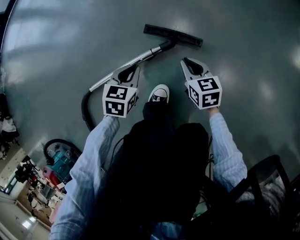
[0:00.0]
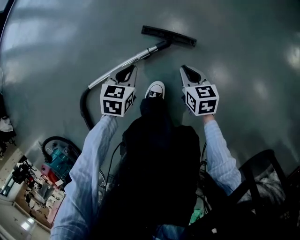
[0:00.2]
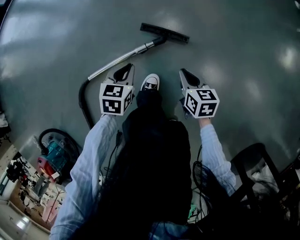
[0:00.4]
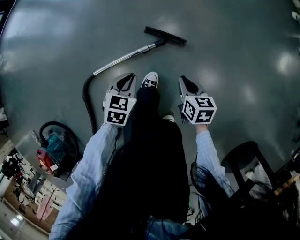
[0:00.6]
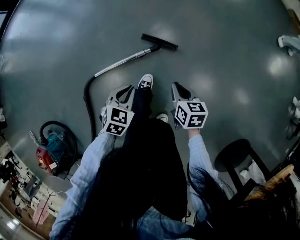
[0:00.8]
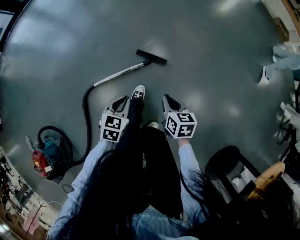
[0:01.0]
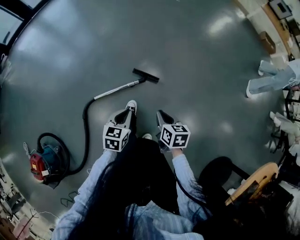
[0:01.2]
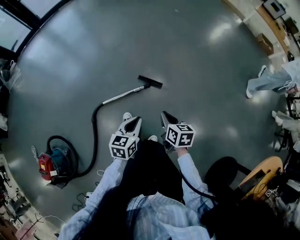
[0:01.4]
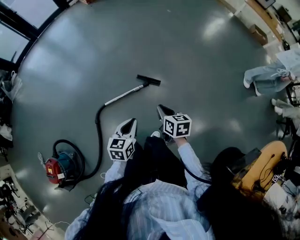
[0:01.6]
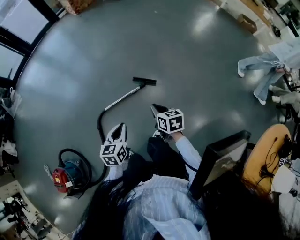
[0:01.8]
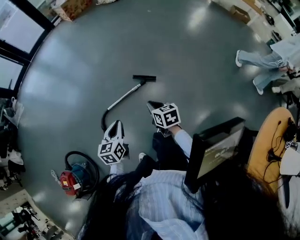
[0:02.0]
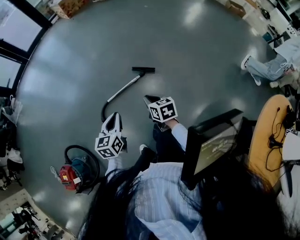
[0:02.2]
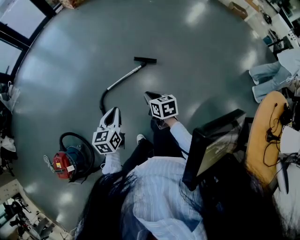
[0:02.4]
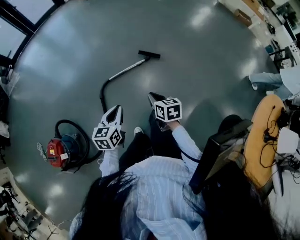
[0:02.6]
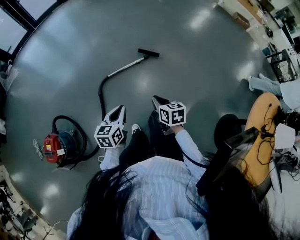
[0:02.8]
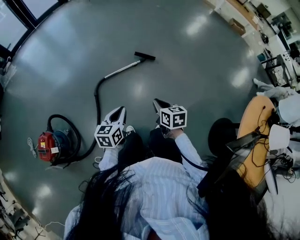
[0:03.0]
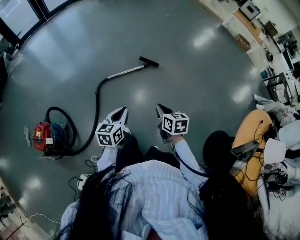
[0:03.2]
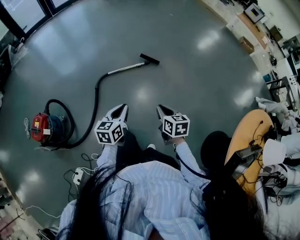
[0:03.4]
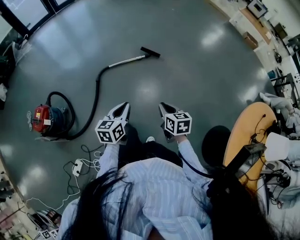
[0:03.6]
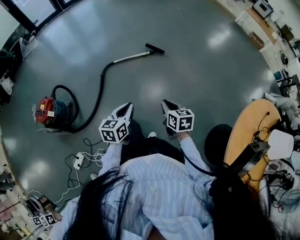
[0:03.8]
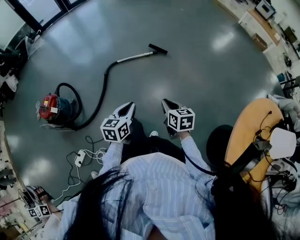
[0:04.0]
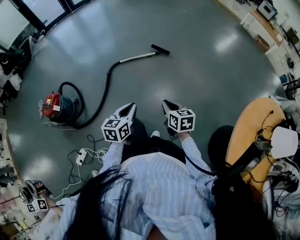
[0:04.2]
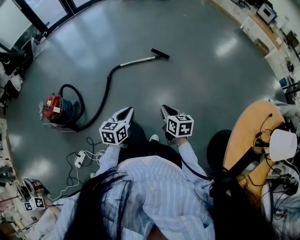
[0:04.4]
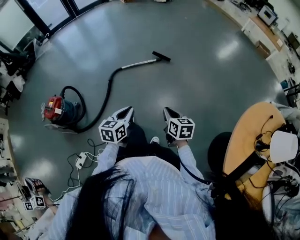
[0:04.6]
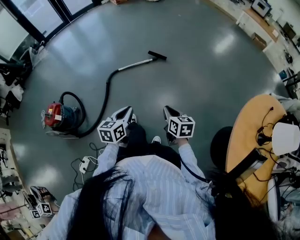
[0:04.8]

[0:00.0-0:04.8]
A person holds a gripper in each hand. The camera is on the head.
0:00.0 to 0:01.6: The right gripper goes about 60 cm upward; the left gripper goes some 70 cm upward and backward, and turns by about 30 degrees.
0:01.6 to 0:03.2: The left gripper travels backward and to the left by approximately 40 cm, while the right gripper moves backward, approximately 40 cm.
0:03.2 to 0:04.8: Both grippers travel together backward and to the right, about 25 cm.

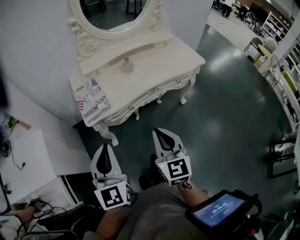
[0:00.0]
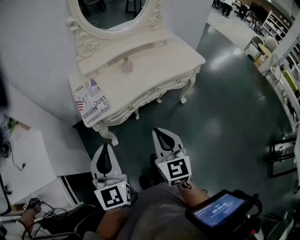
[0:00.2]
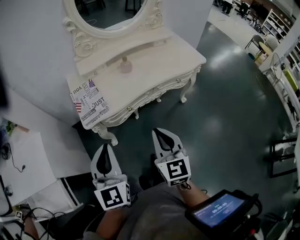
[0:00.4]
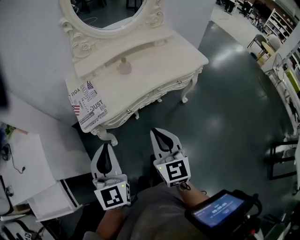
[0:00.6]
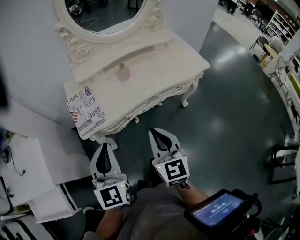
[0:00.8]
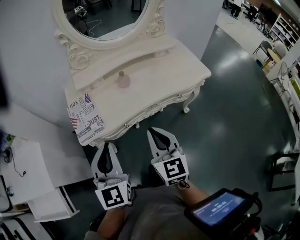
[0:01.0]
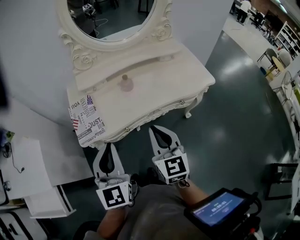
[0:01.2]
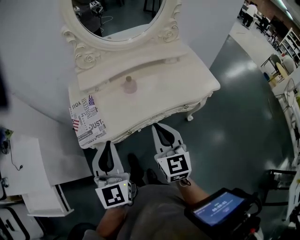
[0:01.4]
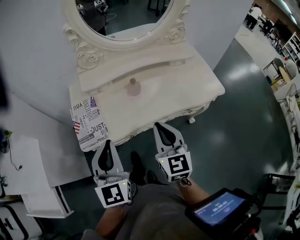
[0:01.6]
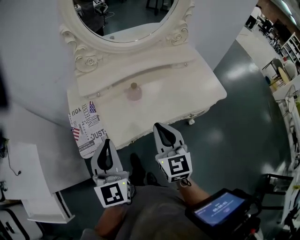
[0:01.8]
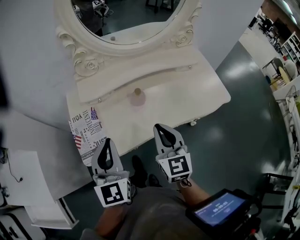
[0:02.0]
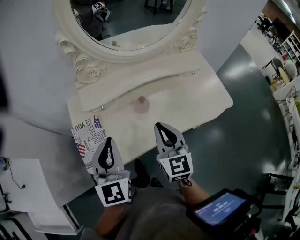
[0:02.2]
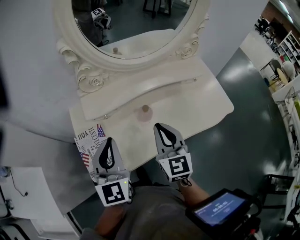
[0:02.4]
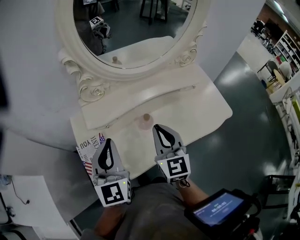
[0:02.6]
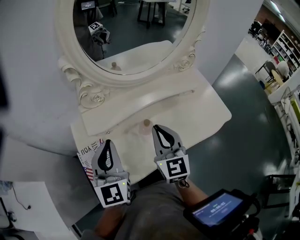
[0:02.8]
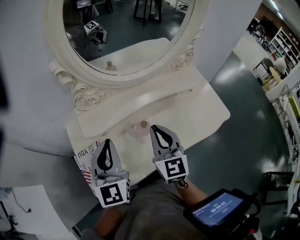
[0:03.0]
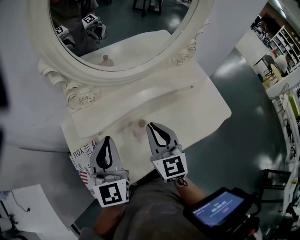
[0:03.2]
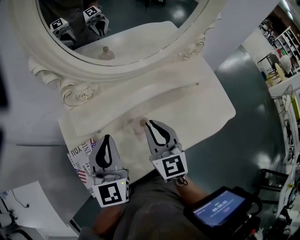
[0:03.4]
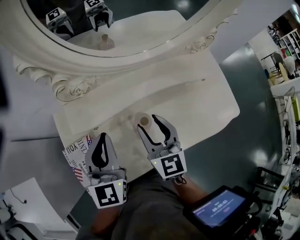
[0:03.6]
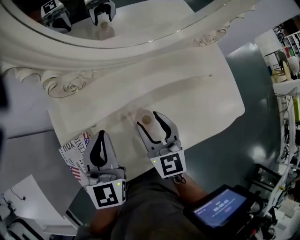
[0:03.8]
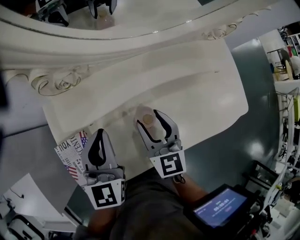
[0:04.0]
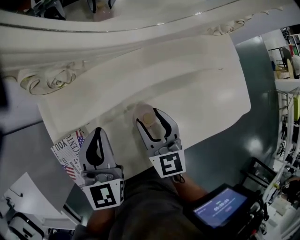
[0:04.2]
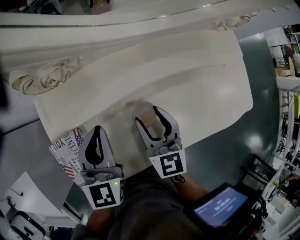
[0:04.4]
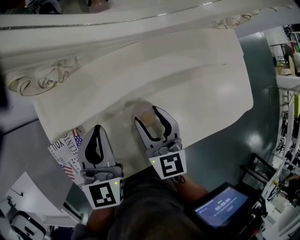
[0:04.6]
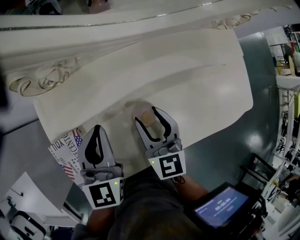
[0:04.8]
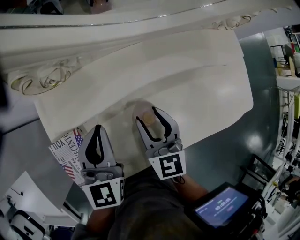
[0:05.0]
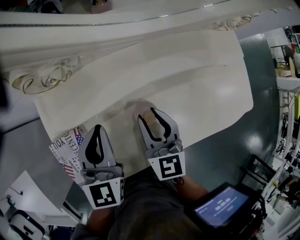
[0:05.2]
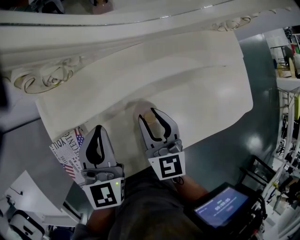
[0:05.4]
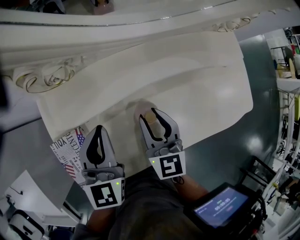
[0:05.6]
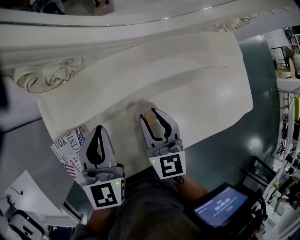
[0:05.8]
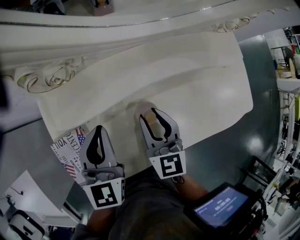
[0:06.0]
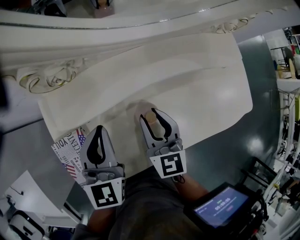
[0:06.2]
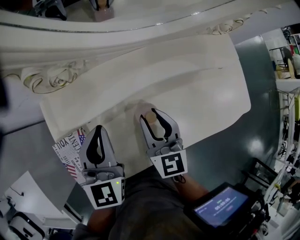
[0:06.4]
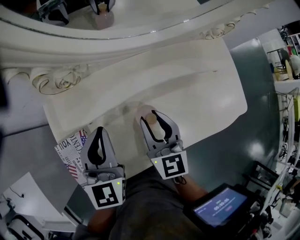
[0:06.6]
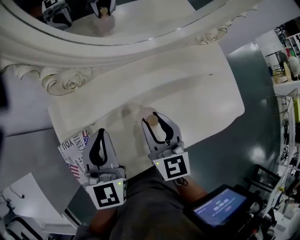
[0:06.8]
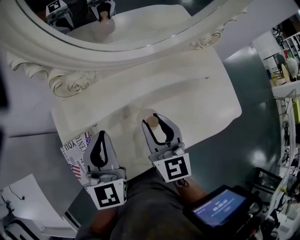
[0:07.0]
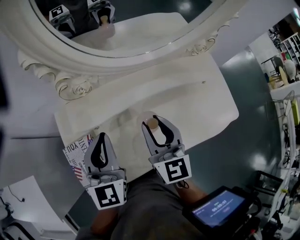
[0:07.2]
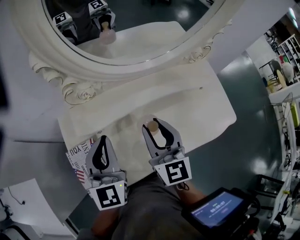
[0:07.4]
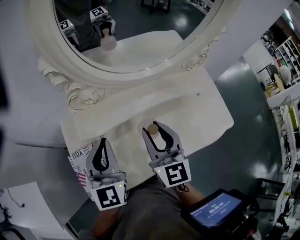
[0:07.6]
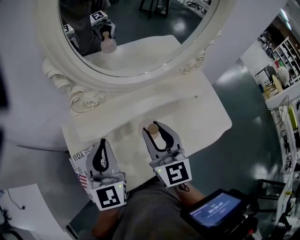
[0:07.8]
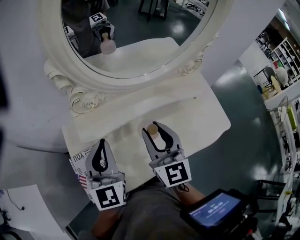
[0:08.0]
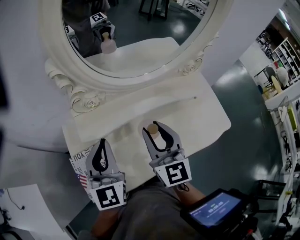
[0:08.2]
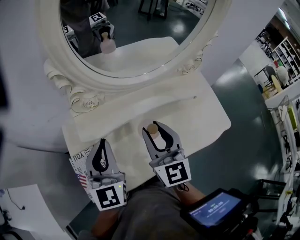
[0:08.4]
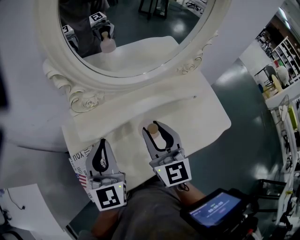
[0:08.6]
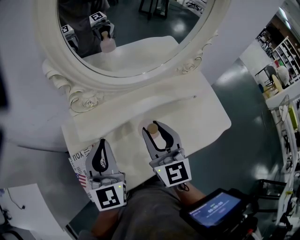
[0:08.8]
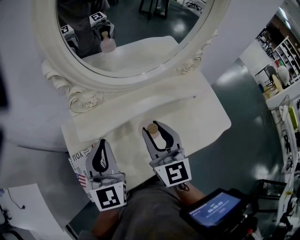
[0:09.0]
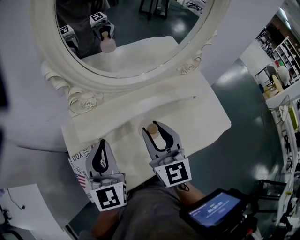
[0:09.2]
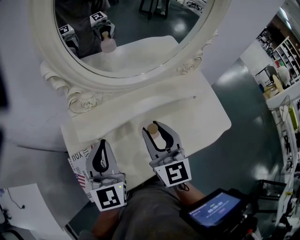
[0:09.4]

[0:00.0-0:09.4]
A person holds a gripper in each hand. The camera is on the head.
0:00.0 to 0:01.6: The right gripper shifts approximately 25 cm forward, while the left gripper shifts about 20 cm forward and to the right.
0:01.6 to 0:03.2: Both grippers move forward, some 25 cm.
0:03.2 to 0:04.8: The right gripper heads downward, covering approximately 15 cm, and opens its fingers, while the left gripper goes about 15 cm downward and forward.
0:04.8 to 0:06.2: The grippers move only a little.
0:06.2 to 0:07.8: The two grippers go roughly 15 cm upward.
0:07.8 to 0:09.4: Neither gripper changes place.

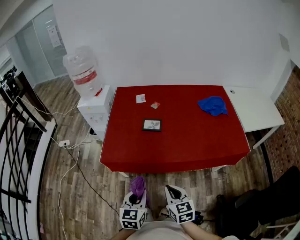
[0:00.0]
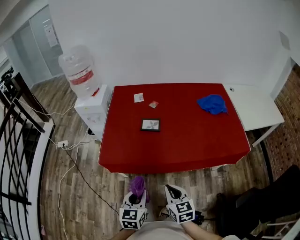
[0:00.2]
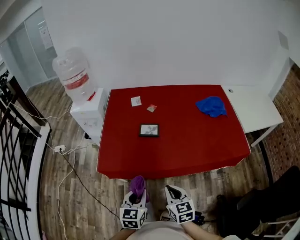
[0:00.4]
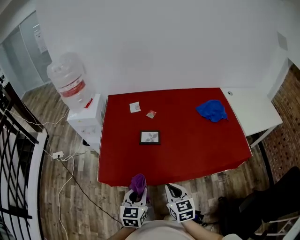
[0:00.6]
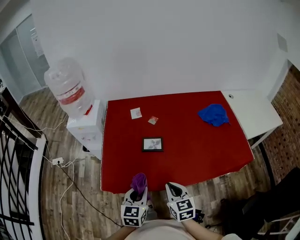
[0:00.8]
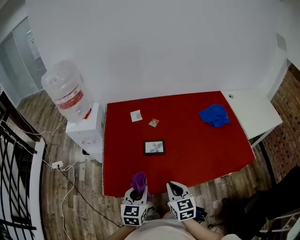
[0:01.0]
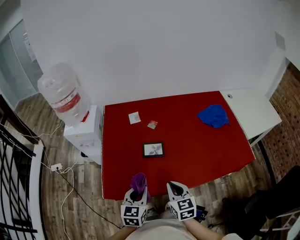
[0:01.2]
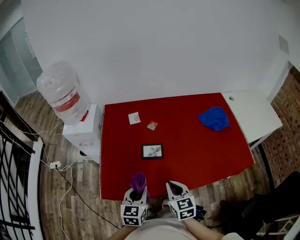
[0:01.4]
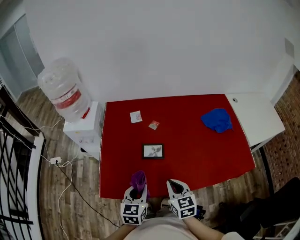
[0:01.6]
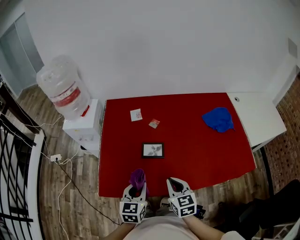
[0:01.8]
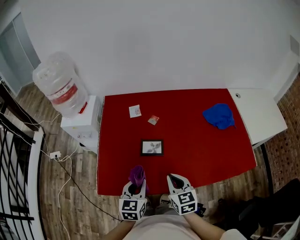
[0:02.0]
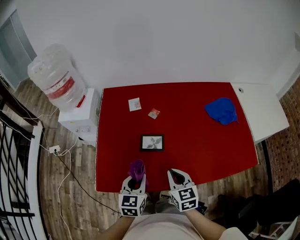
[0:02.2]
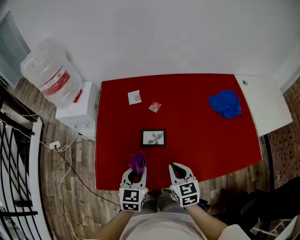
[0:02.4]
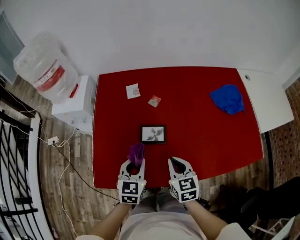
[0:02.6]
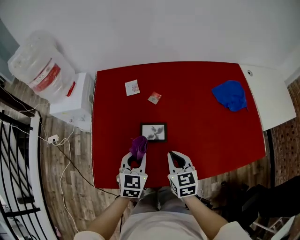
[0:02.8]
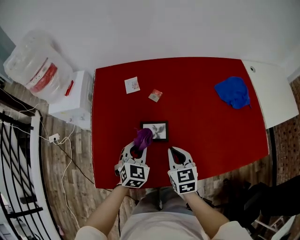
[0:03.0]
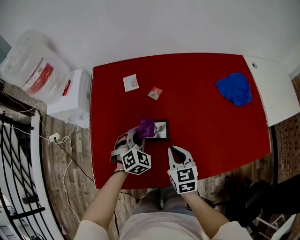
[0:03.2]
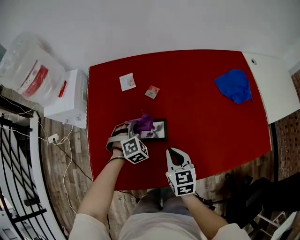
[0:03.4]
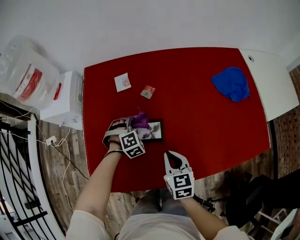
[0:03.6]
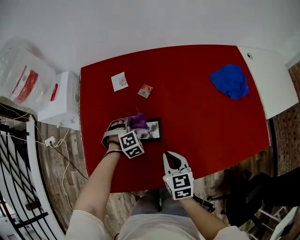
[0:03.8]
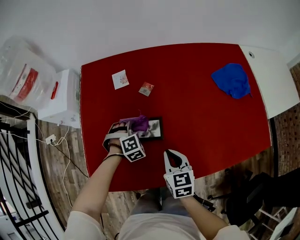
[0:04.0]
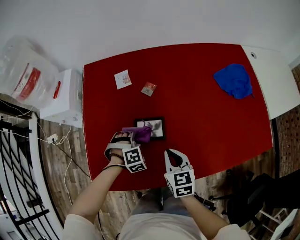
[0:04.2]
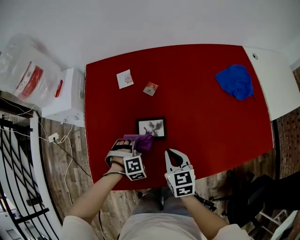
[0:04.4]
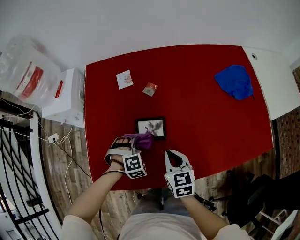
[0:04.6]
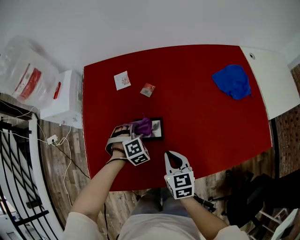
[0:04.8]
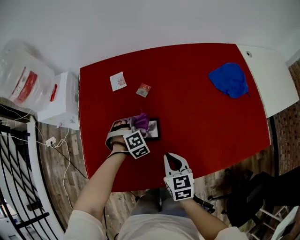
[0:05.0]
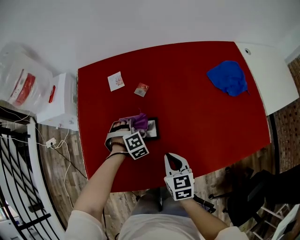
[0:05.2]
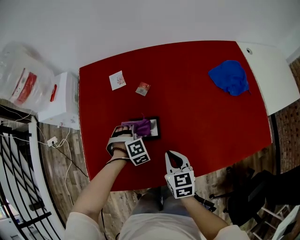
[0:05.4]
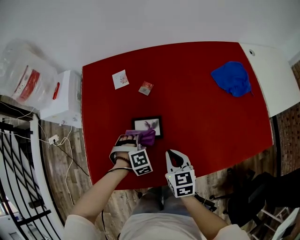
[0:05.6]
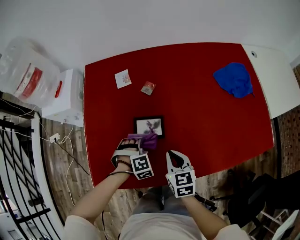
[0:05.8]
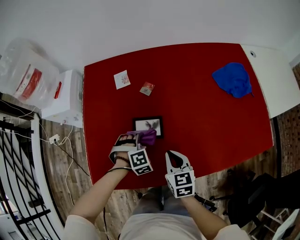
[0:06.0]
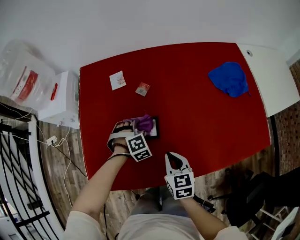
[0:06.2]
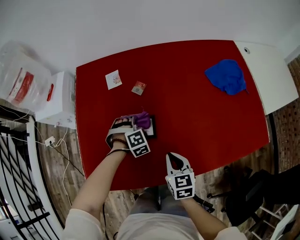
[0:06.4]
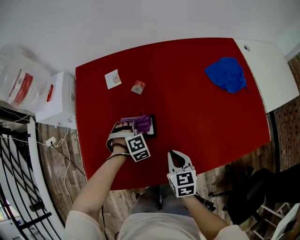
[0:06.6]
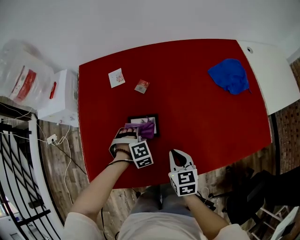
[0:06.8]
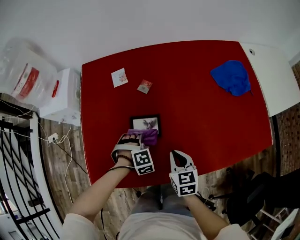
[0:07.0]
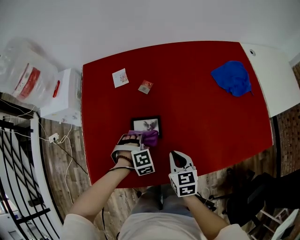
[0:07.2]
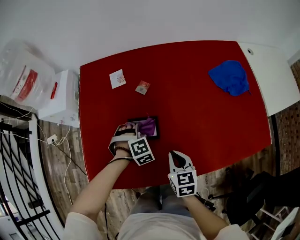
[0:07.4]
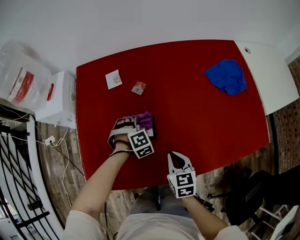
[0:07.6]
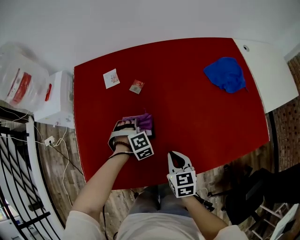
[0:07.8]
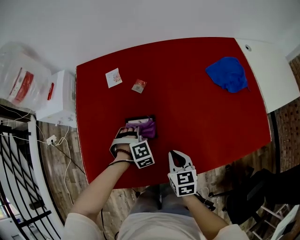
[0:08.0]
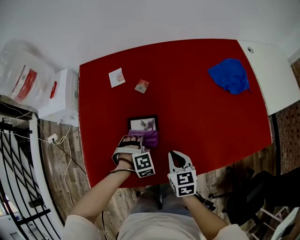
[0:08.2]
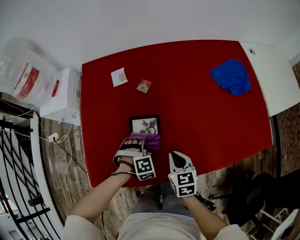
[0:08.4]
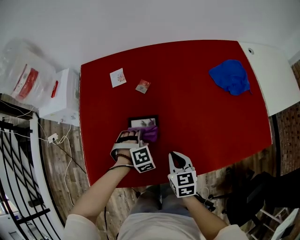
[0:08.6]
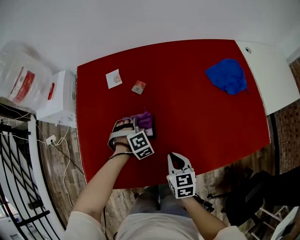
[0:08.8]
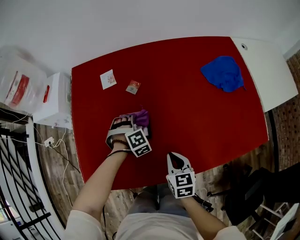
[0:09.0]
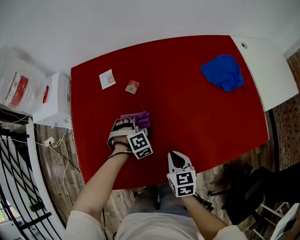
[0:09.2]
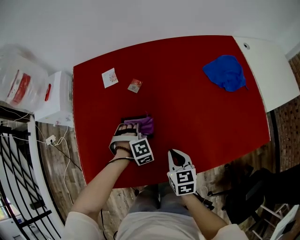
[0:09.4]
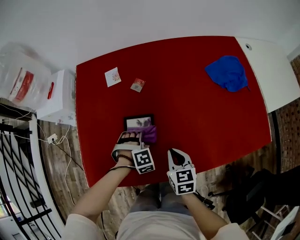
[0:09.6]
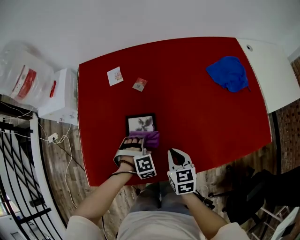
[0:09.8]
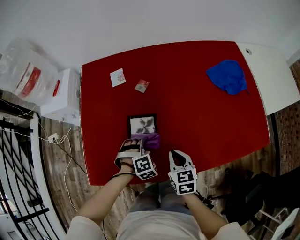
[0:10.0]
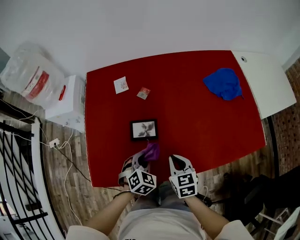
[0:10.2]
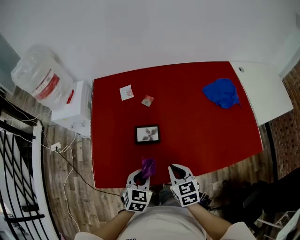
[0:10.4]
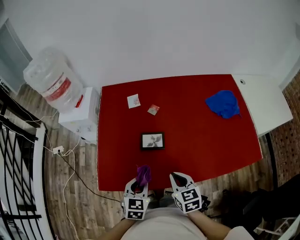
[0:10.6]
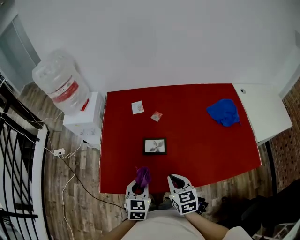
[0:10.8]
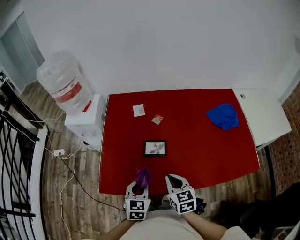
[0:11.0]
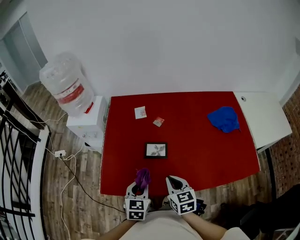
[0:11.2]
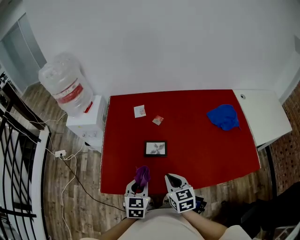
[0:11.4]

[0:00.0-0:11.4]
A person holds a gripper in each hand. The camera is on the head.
0:00.0 to 0:01.4: The grippers both shift forward by approximately 25 cm.
0:01.4 to 0:02.8: Both grippers travel together forward and downward, approximately 15 cm.
0:02.8 to 0:04.2: The left gripper travels downward and forward by approximately 15 cm, and rolls clockwise, seen from behind, by about 60 degrees; the right gripper heads downward, covering approximately 5 cm.
0:04.2 to 0:05.6: The left gripper moves forward and backward over approximately 10 cm, changing direction 2 times.
0:05.6 to 0:07.2: The left gripper goes forward and returns, approximately 10 cm each way.
0:07.2 to 0:08.6: The left gripper goes forward and backward, approximately 10 cm each way, reversing 2 times.
0:08.6 to 0:10.0: The left gripper is displaced backward by about 5 cm.
0:10.0 to 0:11.4: The right gripper shifts some 15 cm upward, to the left and backward; the left gripper goes about 25 cm upward, backward and to the left, and rotates around the line of its fingers by about 70 degrees, counterclockwise from behind.
